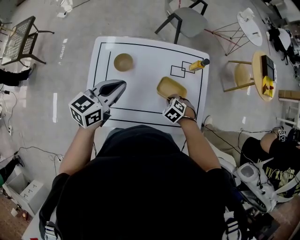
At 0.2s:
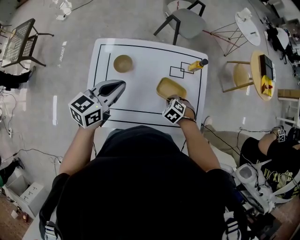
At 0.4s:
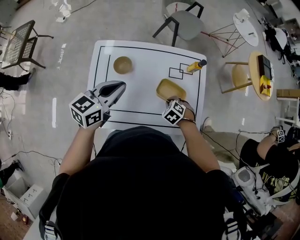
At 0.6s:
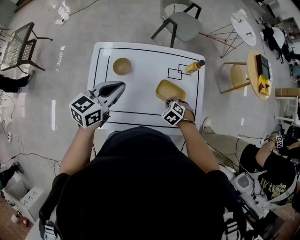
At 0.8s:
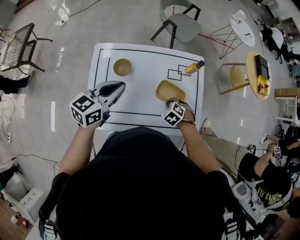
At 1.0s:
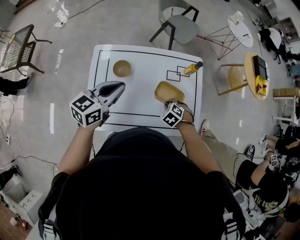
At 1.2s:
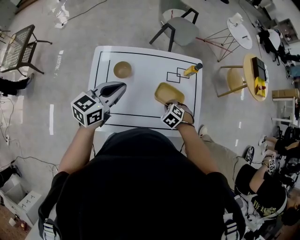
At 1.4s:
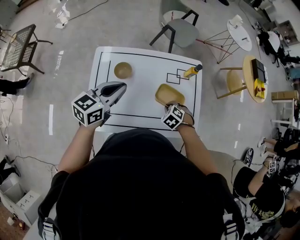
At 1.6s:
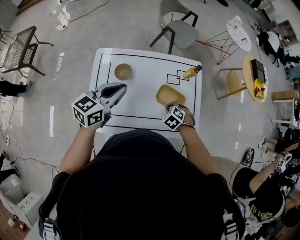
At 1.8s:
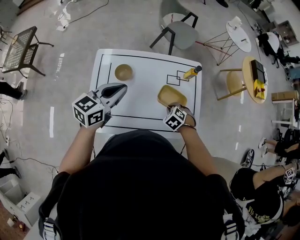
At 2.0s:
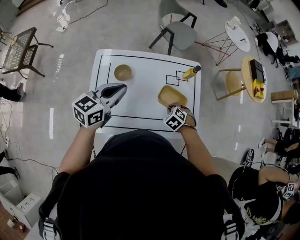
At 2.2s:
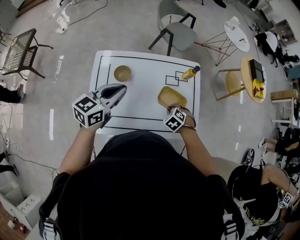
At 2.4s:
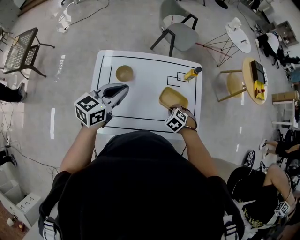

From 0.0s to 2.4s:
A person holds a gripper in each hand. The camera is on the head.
From 0.0s to 2.4s: The grippers move only a little.

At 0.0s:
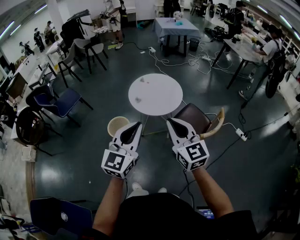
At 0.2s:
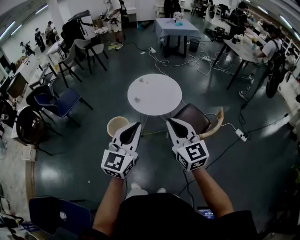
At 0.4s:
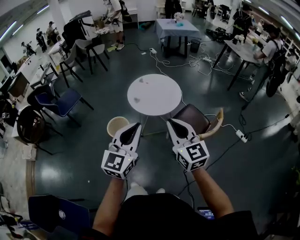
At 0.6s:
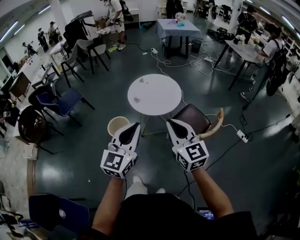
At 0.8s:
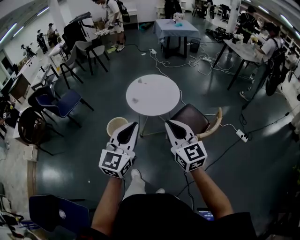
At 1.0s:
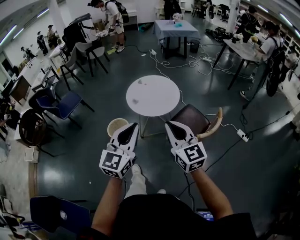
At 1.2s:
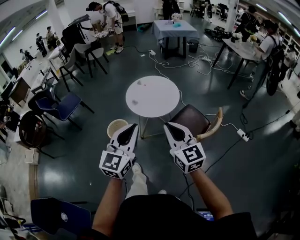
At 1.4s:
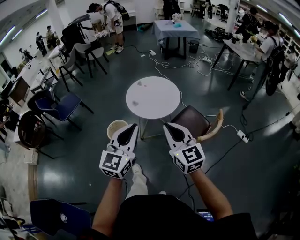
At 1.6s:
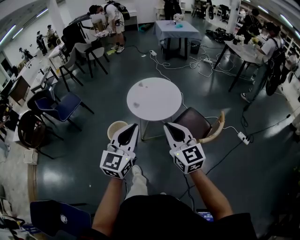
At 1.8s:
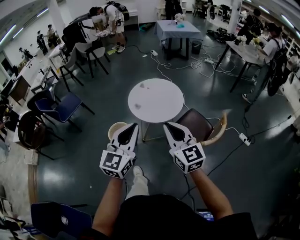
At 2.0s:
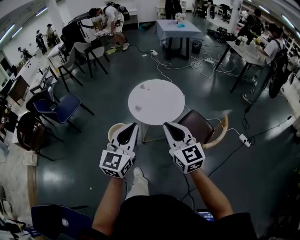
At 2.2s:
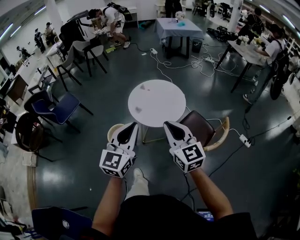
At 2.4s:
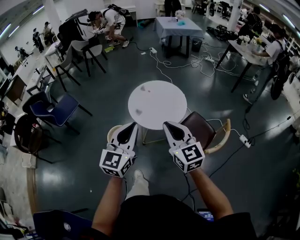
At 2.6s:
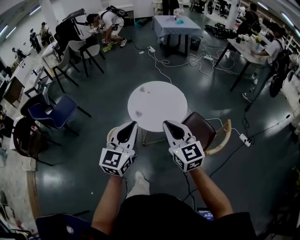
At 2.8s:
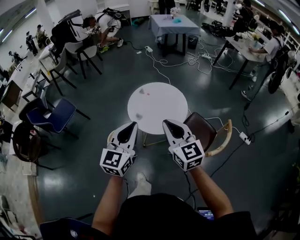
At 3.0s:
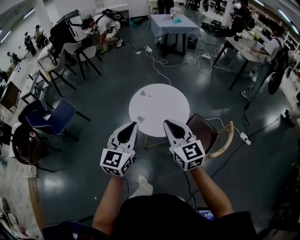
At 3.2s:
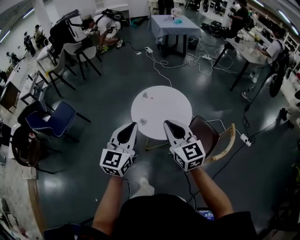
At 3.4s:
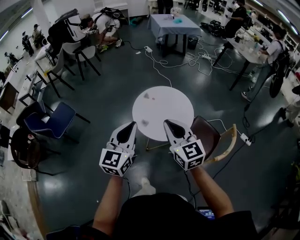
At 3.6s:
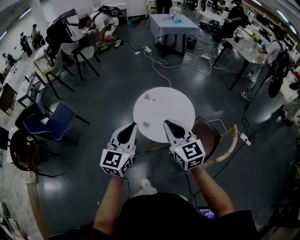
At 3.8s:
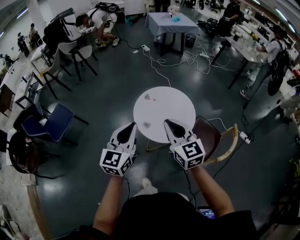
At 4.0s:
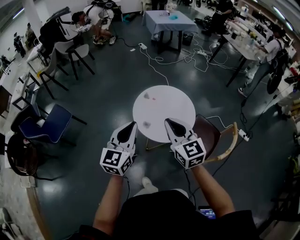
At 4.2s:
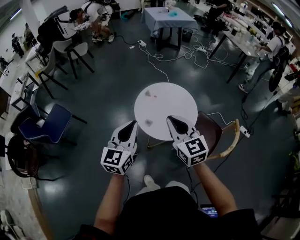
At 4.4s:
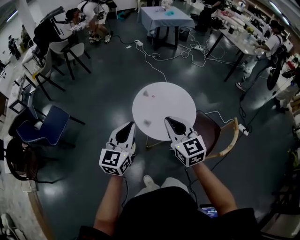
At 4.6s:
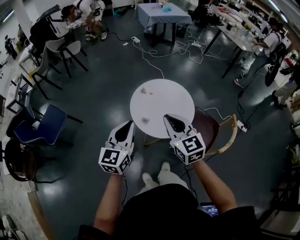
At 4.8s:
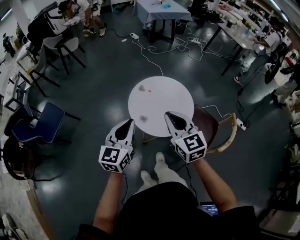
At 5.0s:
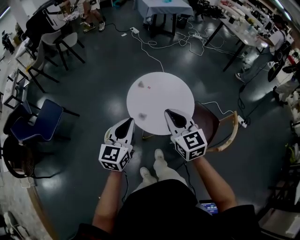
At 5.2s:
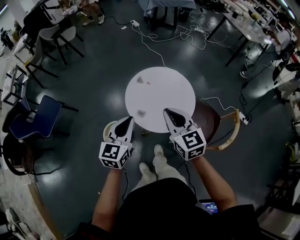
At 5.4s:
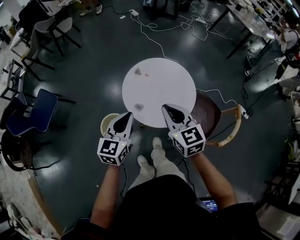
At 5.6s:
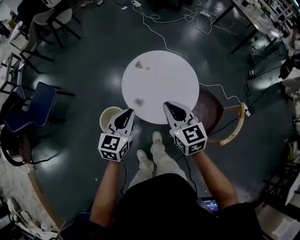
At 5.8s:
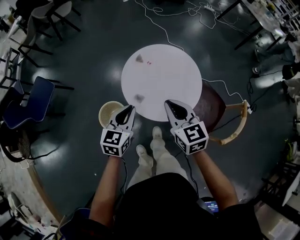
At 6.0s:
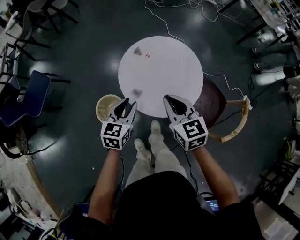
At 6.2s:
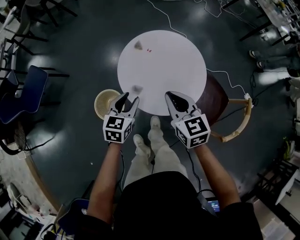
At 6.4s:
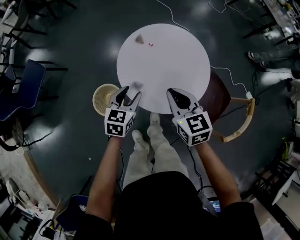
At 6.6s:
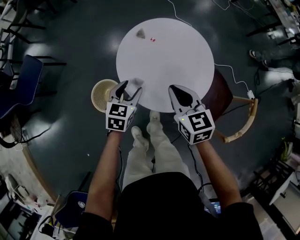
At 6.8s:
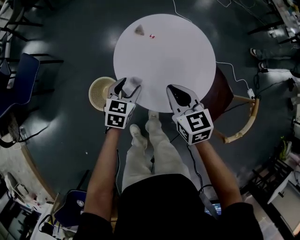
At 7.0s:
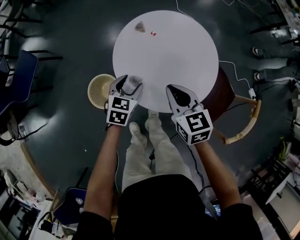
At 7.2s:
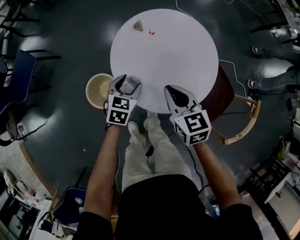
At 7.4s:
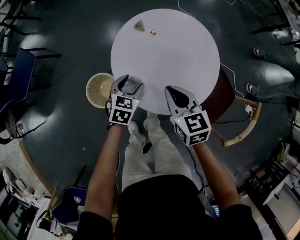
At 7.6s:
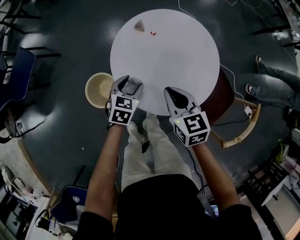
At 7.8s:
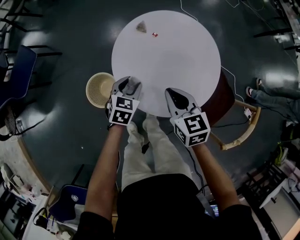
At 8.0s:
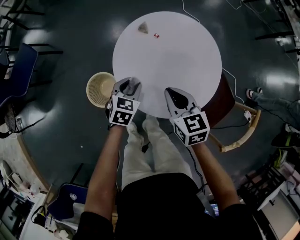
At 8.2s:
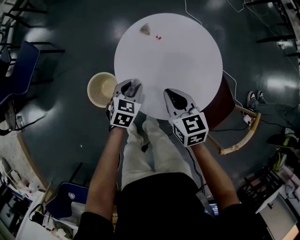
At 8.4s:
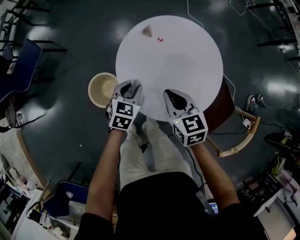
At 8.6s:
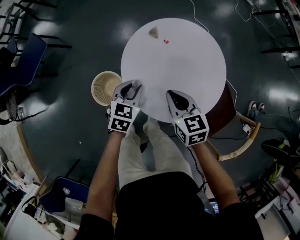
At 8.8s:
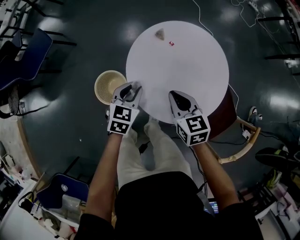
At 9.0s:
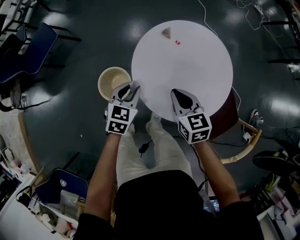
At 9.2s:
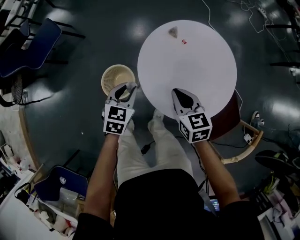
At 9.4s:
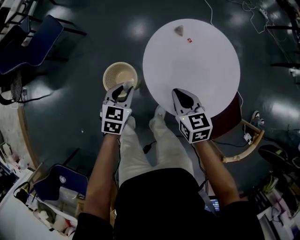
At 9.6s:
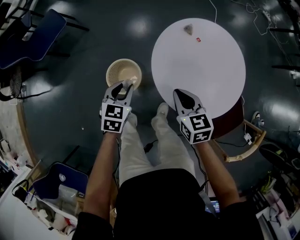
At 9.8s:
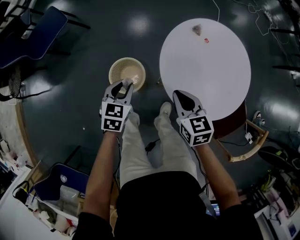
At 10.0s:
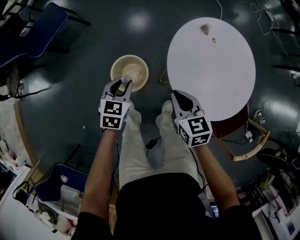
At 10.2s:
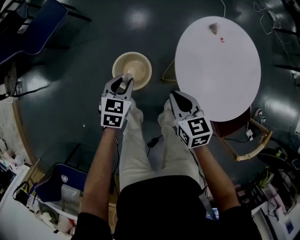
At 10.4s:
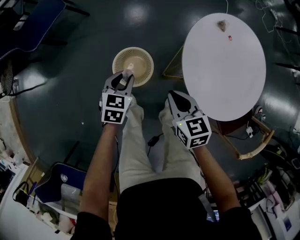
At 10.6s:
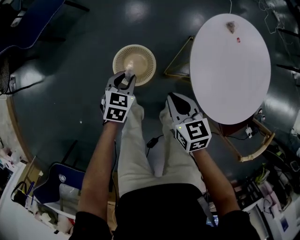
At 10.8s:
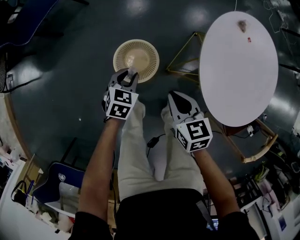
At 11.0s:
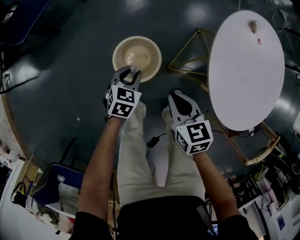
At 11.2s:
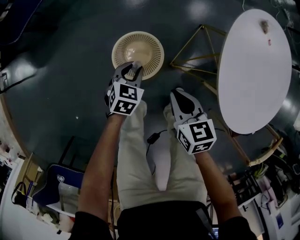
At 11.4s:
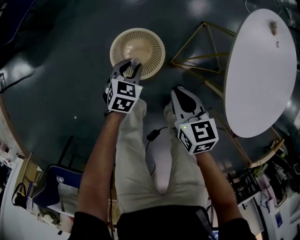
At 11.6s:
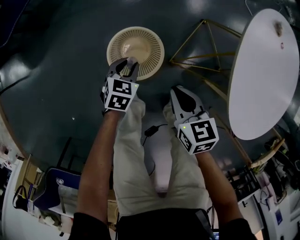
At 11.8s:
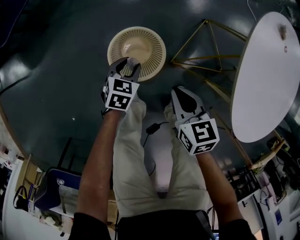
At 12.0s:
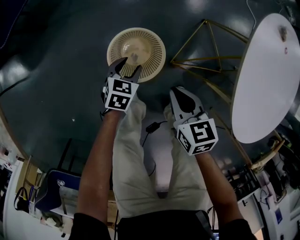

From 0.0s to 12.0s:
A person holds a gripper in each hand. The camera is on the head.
From 0.0s to 1.6s: The grippers move only a little.
From 1.6s to 3.0s: The two grippers go approximately 25 cm forward.
From 3.0s to 4.4s: The right gripper heads forward and to the left, covering some 15 cm. Meanwhile the left gripper is displaced to the left, forward and downward by some 20 cm.
From 4.4s to 6.0s: The two grippers go about 25 cm downward and forward. The left gripper rotates some 30 degrees, and opens up.
From 6.0s to 7.6s: The left gripper goes approximately 20 cm downward and forward, and opens its fingers. Meanwhile the right gripper is displaced downward by roughly 15 cm.
From 7.6s to 9.0s: The left gripper moves to the left and upward, roughly 10 cm, and closes up.
From 9.0s to 10.4s: The left gripper goes approximately 30 cm to the left and downward, while the right gripper is displaced to the left by approximately 25 cm.
From 10.4s to 12.0s: Both grippers travel together downward, some 25 cm. The left gripper opens up.

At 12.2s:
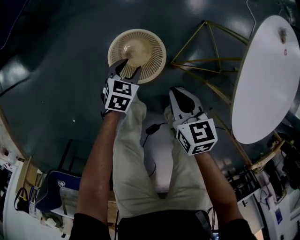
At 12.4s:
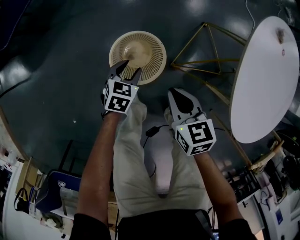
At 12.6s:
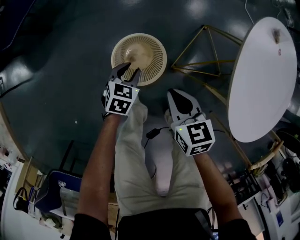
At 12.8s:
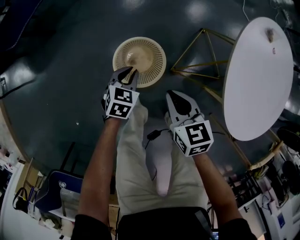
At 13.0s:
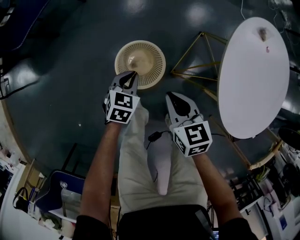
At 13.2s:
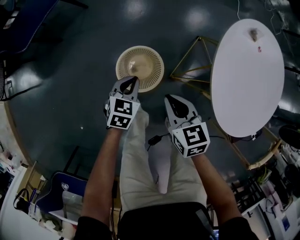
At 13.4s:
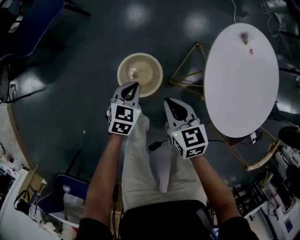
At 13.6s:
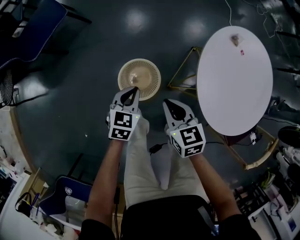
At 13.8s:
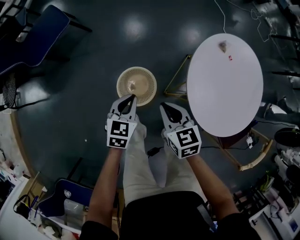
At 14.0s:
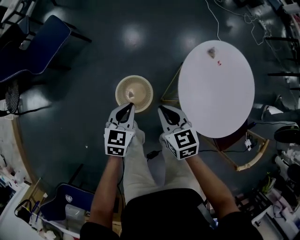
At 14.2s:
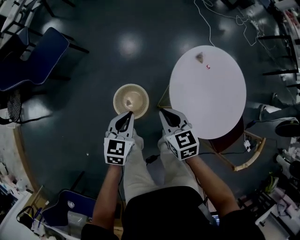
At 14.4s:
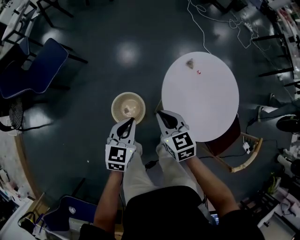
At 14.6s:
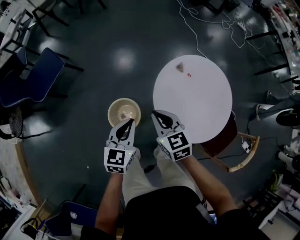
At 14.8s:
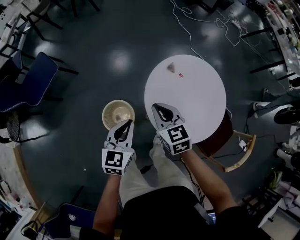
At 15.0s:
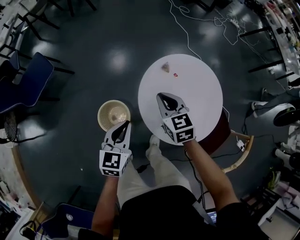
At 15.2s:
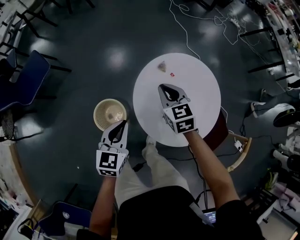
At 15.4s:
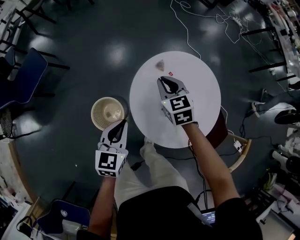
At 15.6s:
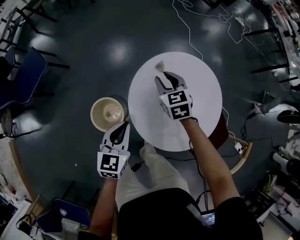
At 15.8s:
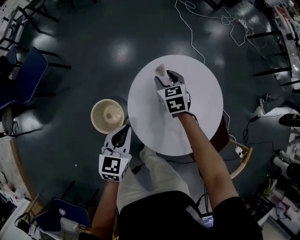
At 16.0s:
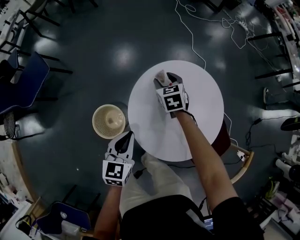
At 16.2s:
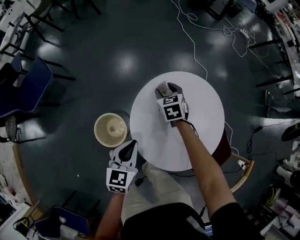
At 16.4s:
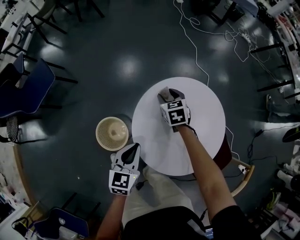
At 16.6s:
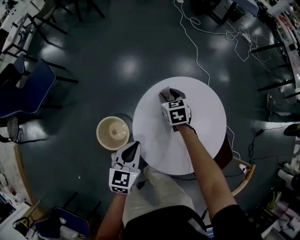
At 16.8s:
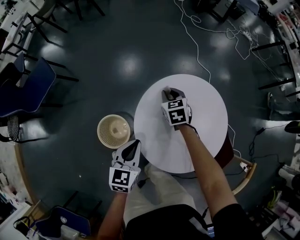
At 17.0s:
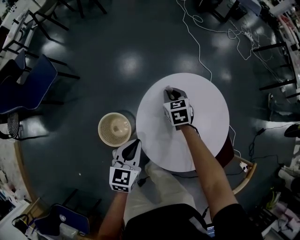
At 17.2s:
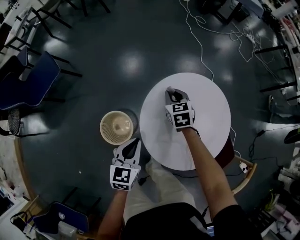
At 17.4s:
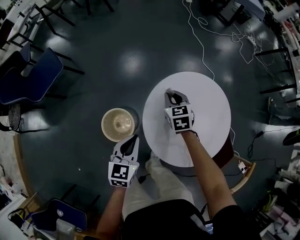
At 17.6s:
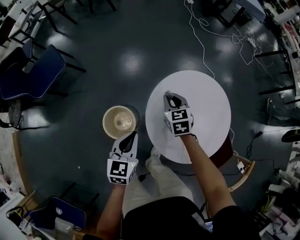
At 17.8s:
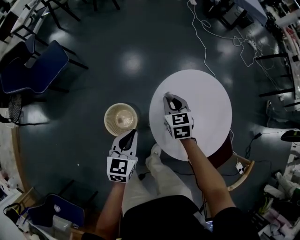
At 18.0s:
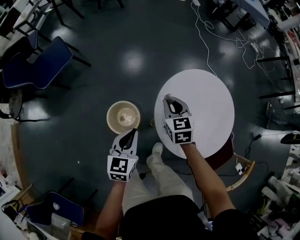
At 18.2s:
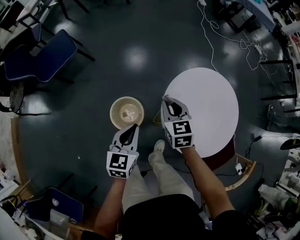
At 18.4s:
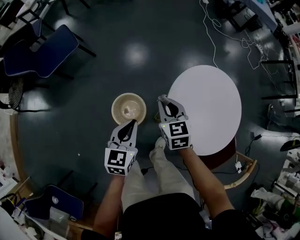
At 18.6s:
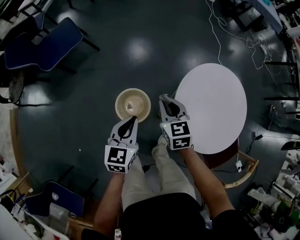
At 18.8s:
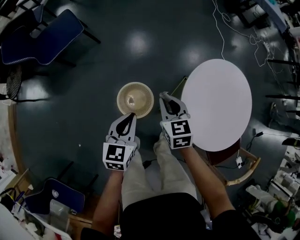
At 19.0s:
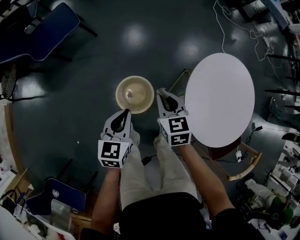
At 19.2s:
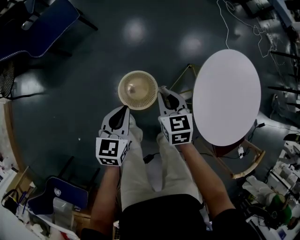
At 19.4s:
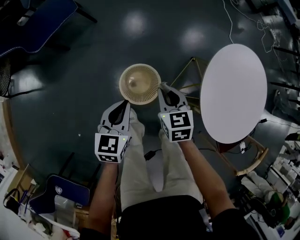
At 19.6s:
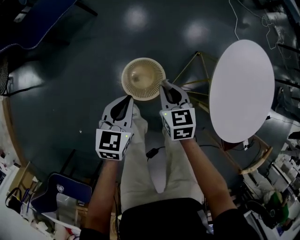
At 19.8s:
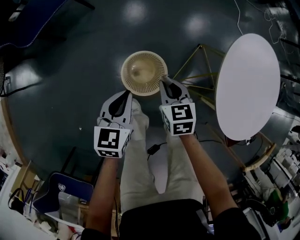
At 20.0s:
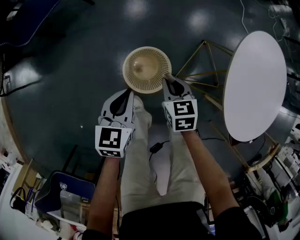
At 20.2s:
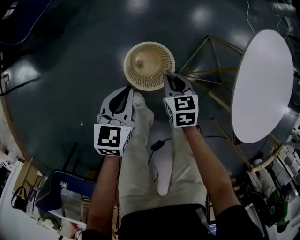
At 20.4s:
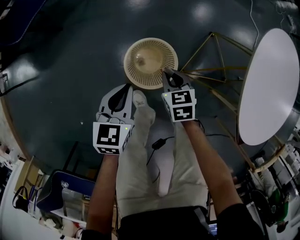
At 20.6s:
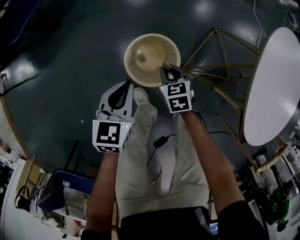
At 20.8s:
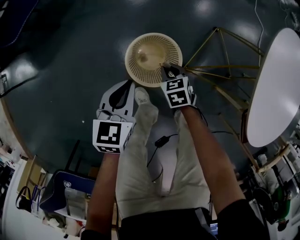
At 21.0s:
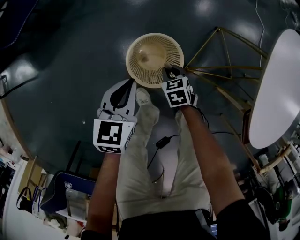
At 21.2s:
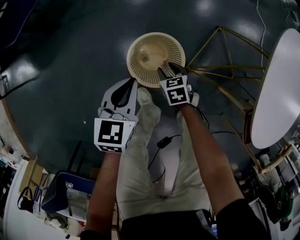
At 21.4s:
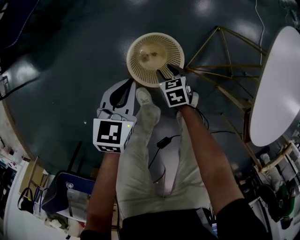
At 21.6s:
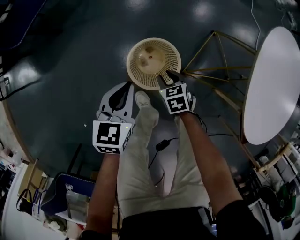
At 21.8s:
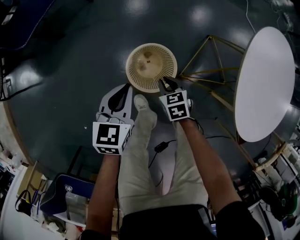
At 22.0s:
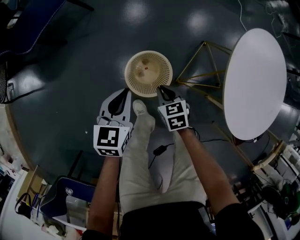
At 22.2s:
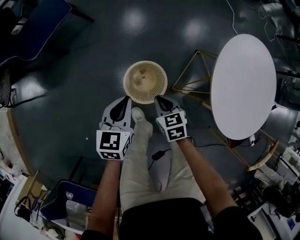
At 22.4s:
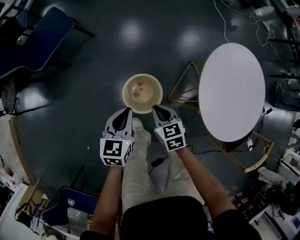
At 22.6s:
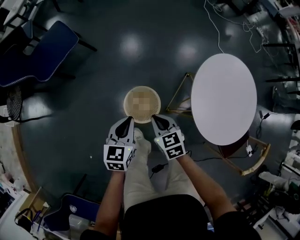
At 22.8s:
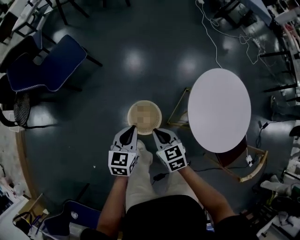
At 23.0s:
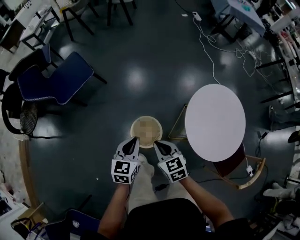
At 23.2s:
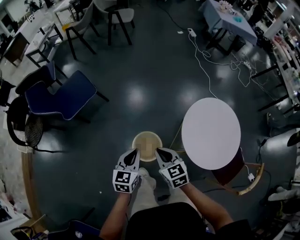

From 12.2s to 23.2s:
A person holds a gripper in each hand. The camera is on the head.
From 12.2s to 13.8s: The grippers both shift upward by roughly 25 cm. The left gripper closes.
From 13.8s to 15.4s: The left gripper heads to the right and upward, covering some 30 cm, while the right gripper is displaced to the right, forward and upward by approximately 35 cm.
From 15.4s to 17.0s: The left gripper ends up about 5 cm from where it was. Meanwhile the right gripper shifts roughly 15 cm downward and forward, and opens, then closes once more.
From 17.0s to 18.4s: The right gripper heads to the left, backward and upward, covering roughly 30 cm. The left gripper shifts about 20 cm to the left.
From 18.4s to 20.0s: The grippers both shift downward and to the left by roughly 30 cm.
From 20.0s to 21.6s: The left gripper travels downward by some 5 cm. The right gripper moves downward, roughly 20 cm, and opens its fingers.
From 21.6s to 23.2s: The two grippers go some 50 cm upward. The right gripper changes its angle by roughly 30 degrees, and closes up.
